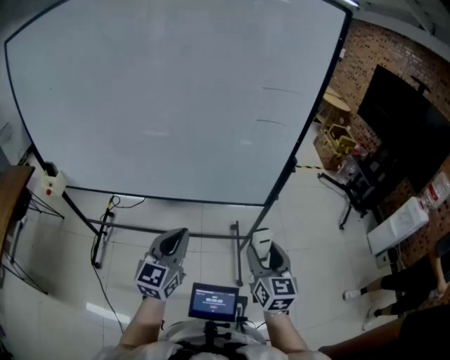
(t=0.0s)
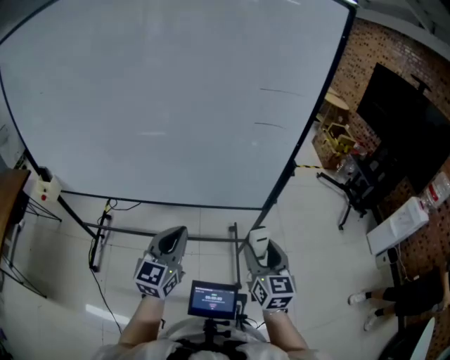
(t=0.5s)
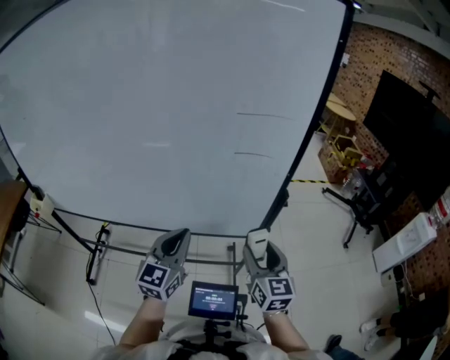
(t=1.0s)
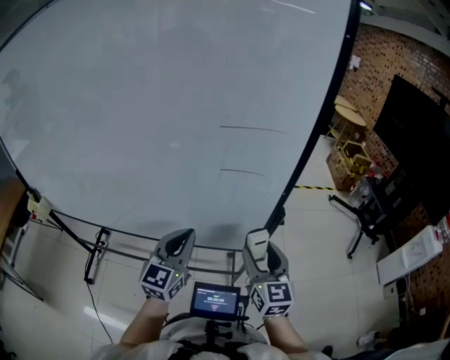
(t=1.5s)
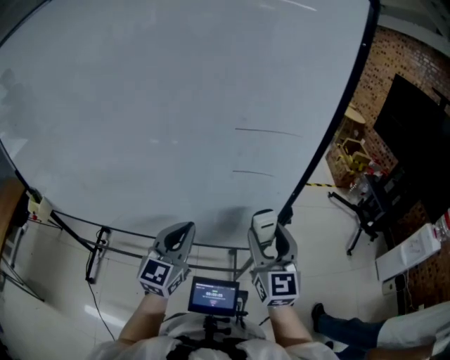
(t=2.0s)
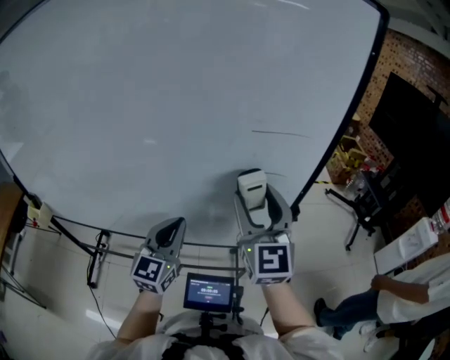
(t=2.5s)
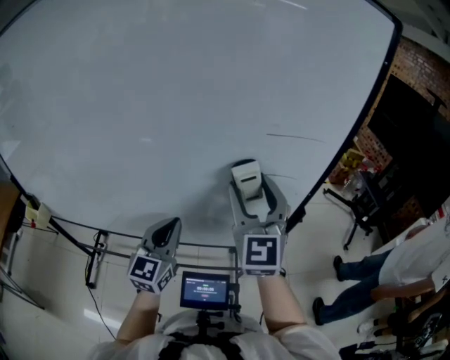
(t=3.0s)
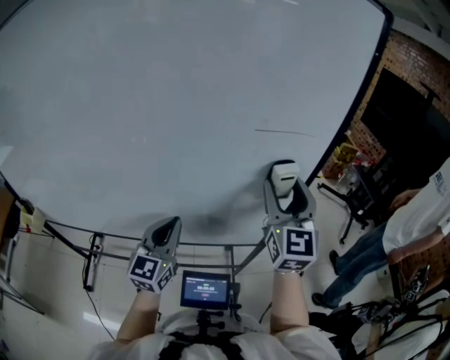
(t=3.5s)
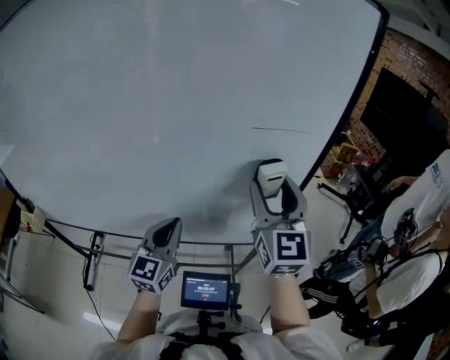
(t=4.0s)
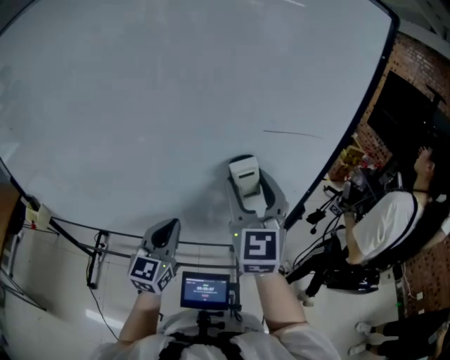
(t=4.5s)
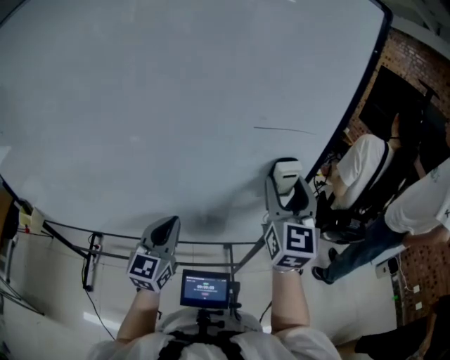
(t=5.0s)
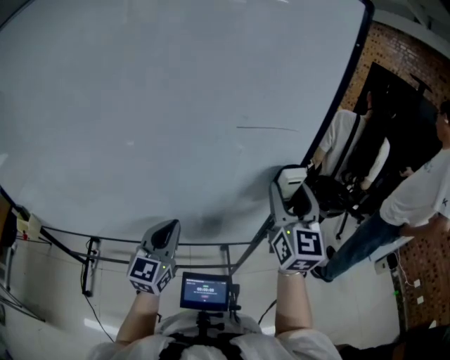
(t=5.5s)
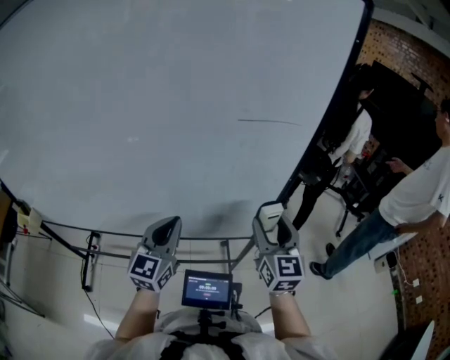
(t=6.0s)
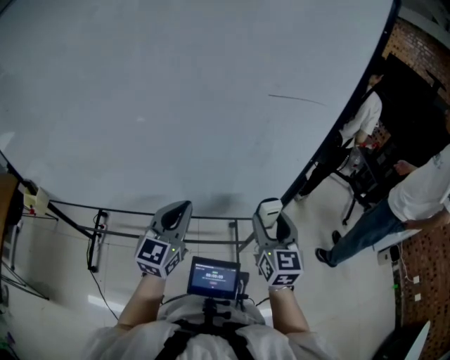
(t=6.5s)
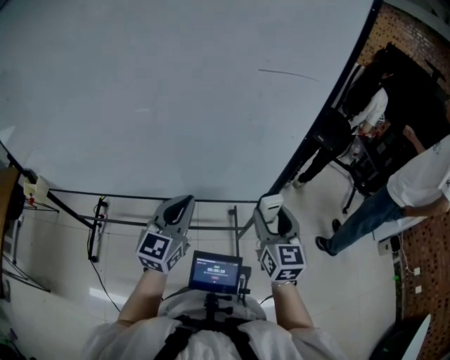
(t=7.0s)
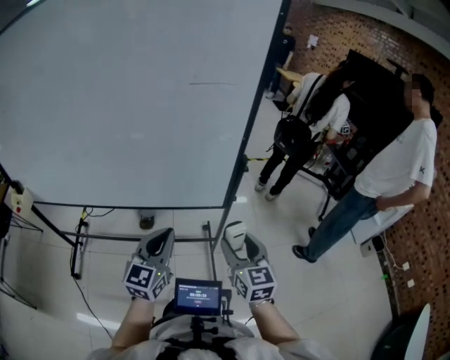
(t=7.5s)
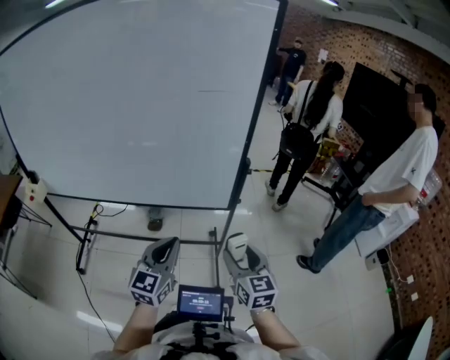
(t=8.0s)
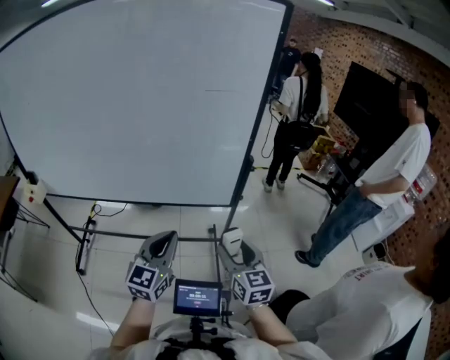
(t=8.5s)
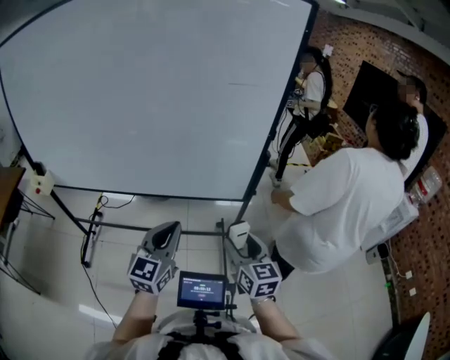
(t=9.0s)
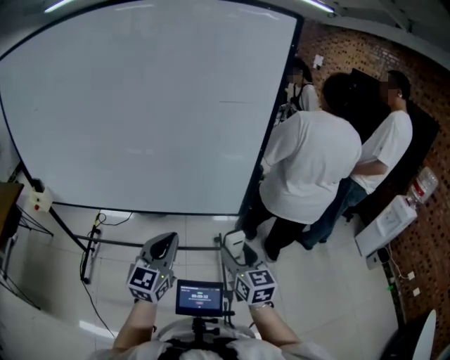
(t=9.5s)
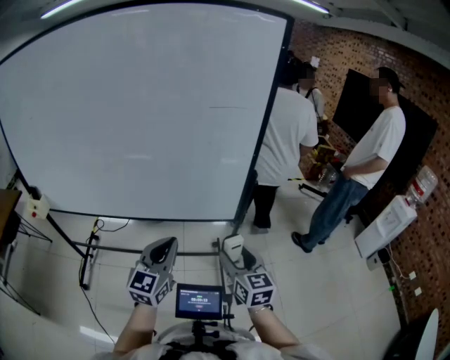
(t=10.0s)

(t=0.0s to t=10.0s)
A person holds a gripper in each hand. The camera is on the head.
t=0.0s - t=2.0s: The left gripper travels forward by roughly 20 cm. Meanwhile the right gripper travels forward and upward by about 25 cm.
t=2.0s - t=4.0s: The left gripper travels to the left by about 5 cm. Meanwhile the right gripper is displaced upward by some 10 cm.
t=4.0s - t=6.0s: The right gripper travels downward and to the right by approximately 15 cm.
t=6.0s - t=8.0s: The left gripper travels backward and to the right by about 20 cm. The right gripper moves backward and downward, some 20 cm.
t=8.0s - t=10.0s: The grippers both shift to the left by roughly 5 cm.

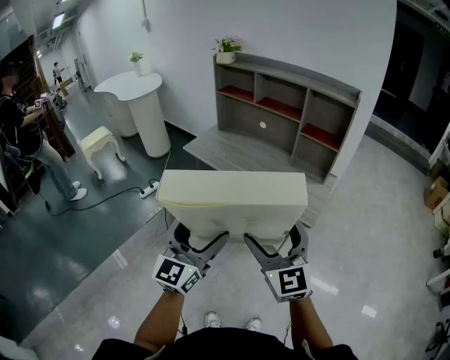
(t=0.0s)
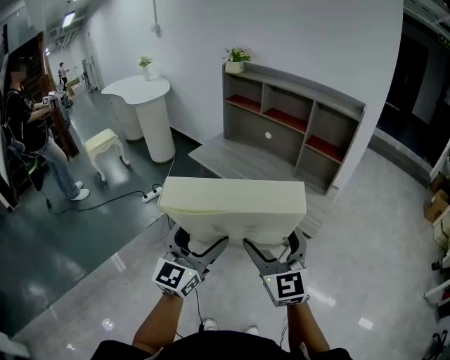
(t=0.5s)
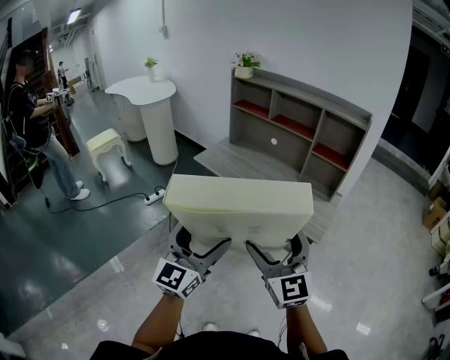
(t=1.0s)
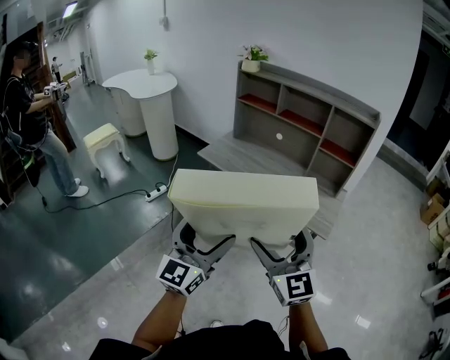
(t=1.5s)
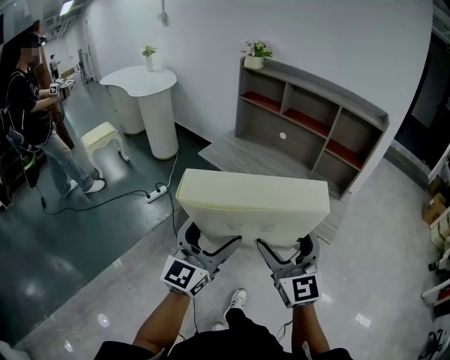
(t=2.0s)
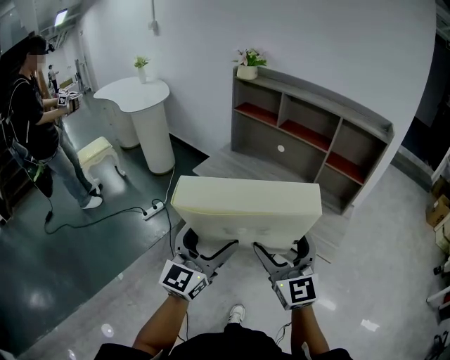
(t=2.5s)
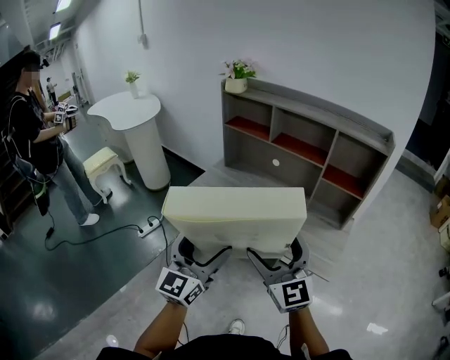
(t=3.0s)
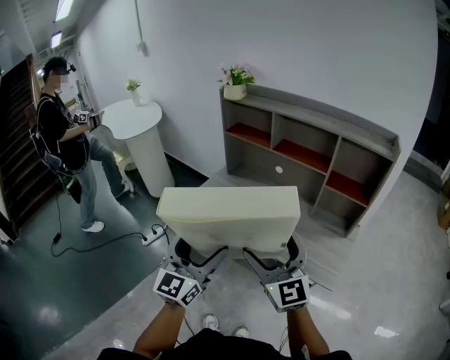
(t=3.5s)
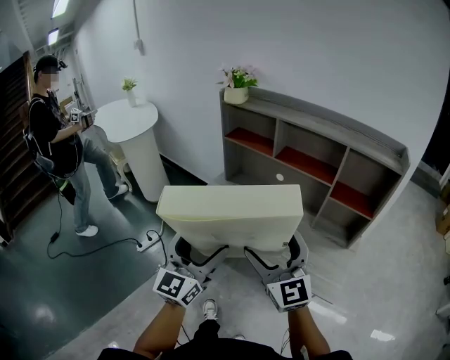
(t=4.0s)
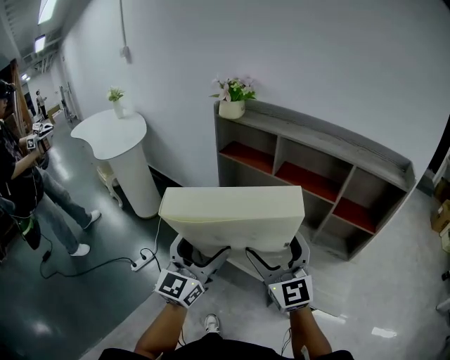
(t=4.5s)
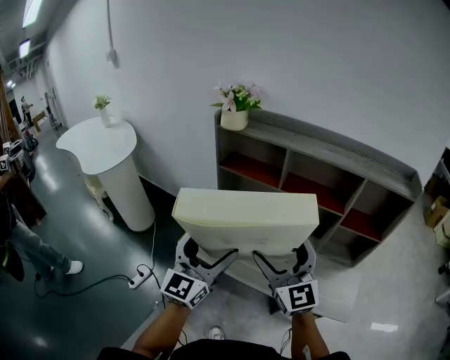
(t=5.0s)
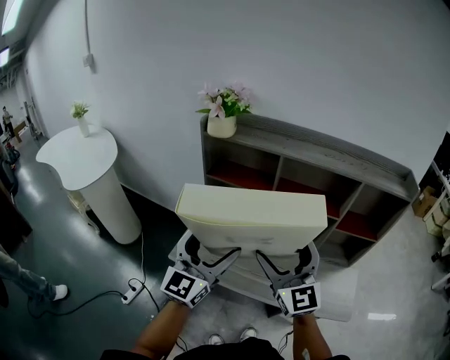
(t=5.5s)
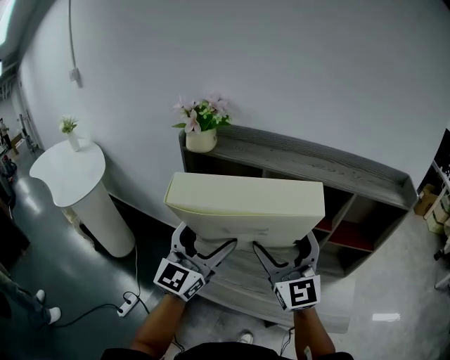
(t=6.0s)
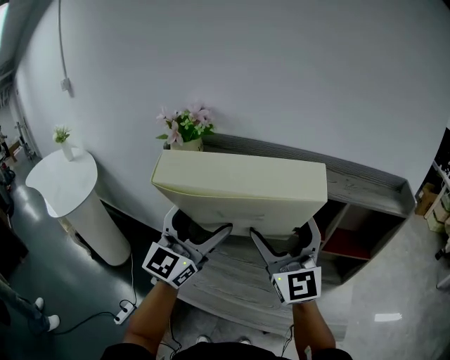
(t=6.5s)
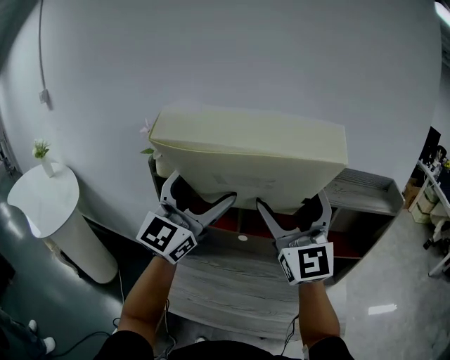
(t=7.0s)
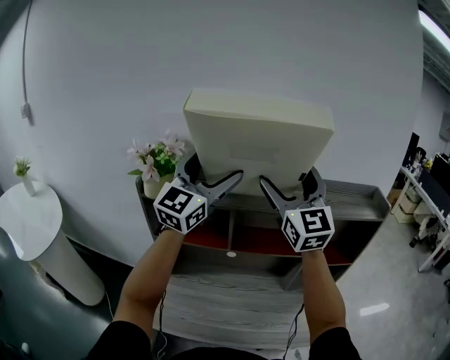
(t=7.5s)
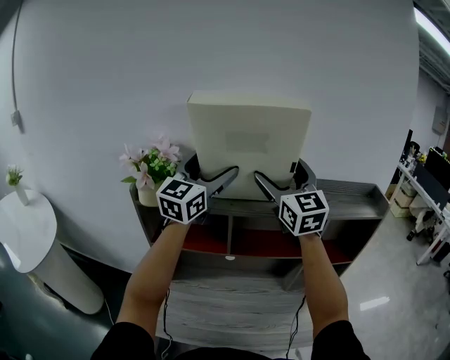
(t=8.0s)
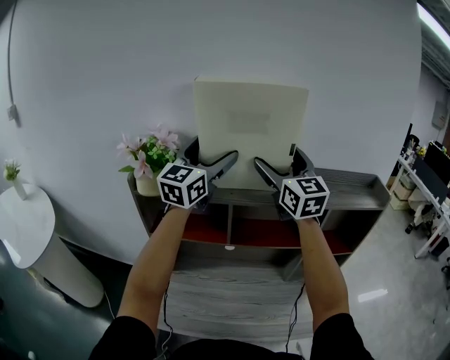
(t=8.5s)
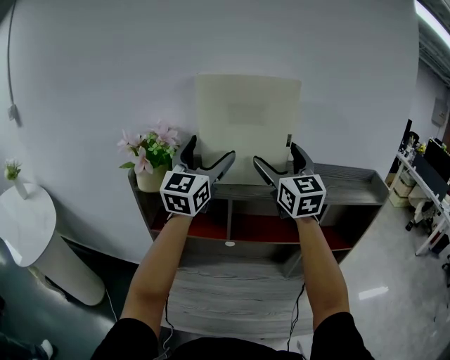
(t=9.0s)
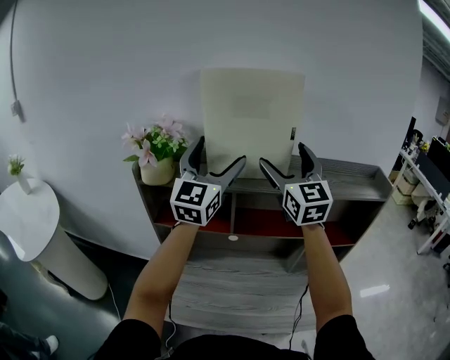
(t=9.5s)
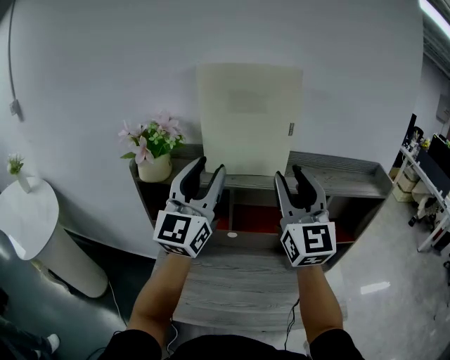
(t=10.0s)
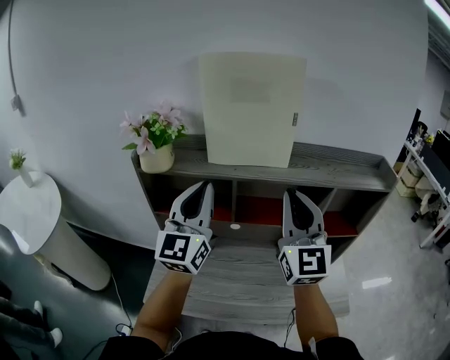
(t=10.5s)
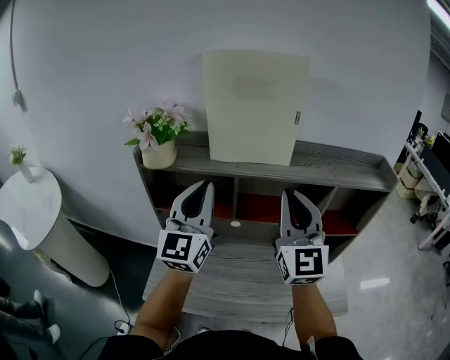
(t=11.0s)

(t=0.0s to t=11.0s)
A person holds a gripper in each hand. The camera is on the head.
t=0.0s - t=2.0s: The left gripper is displaced to the left and forward by about 10 cm; the right gripper travels to the left by roughly 10 cm.
t=2.0s - t=3.5s: The two grippers go roughly 20 cm forward.
t=3.5s - t=5.5s: Both grippers move forward, some 30 cm. The right gripper turns by about 20 degrees.
t=5.5s - t=7.5s: The grippers both shift forward and upward by some 35 cm. The left gripper changes its angle by approximately 20 degrees.
t=7.5s - t=9.0s: Both grippers move forward, about 5 cm.
t=9.0s - t=11.0s: Both grippers travel together backward and downward, some 15 cm. The right gripper closes up; the left gripper closes up.

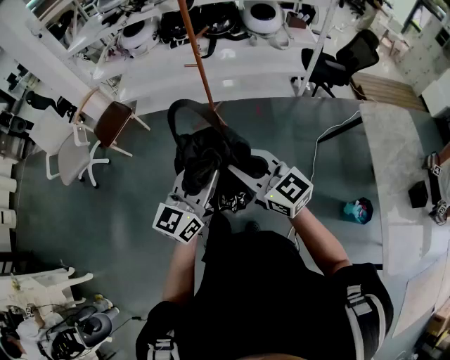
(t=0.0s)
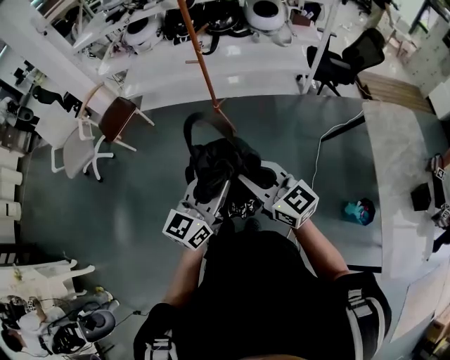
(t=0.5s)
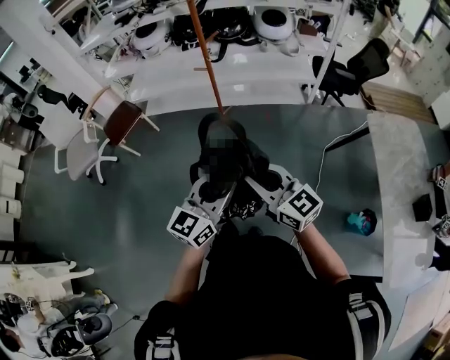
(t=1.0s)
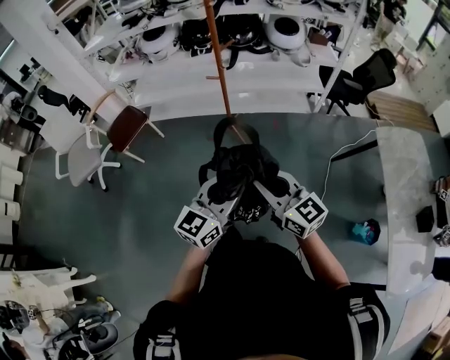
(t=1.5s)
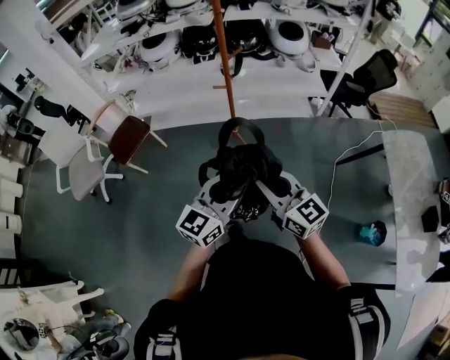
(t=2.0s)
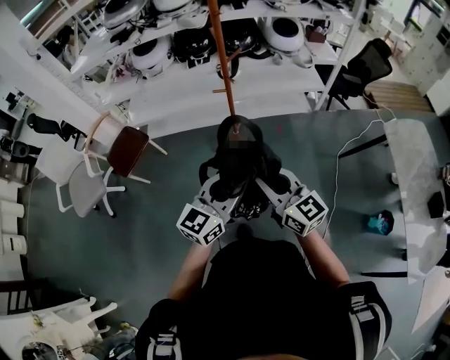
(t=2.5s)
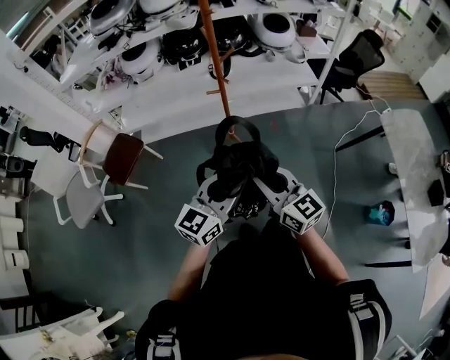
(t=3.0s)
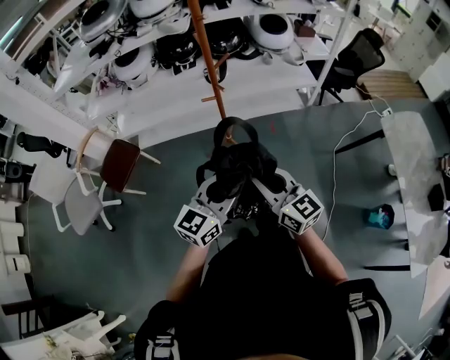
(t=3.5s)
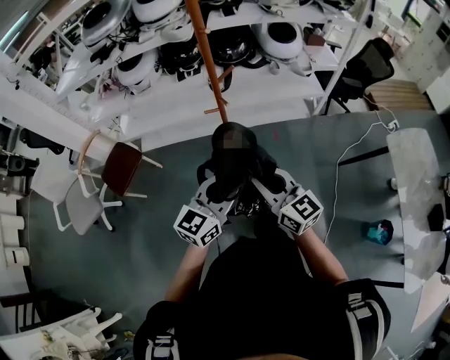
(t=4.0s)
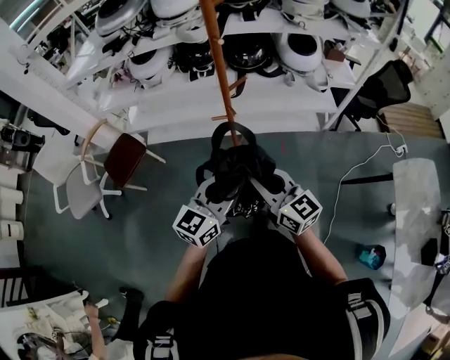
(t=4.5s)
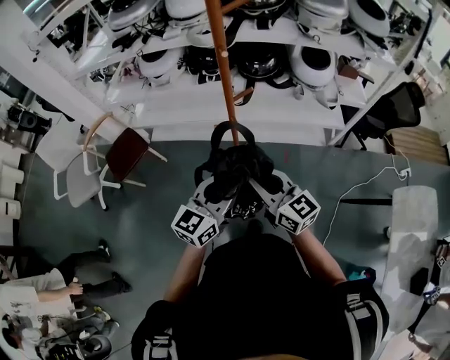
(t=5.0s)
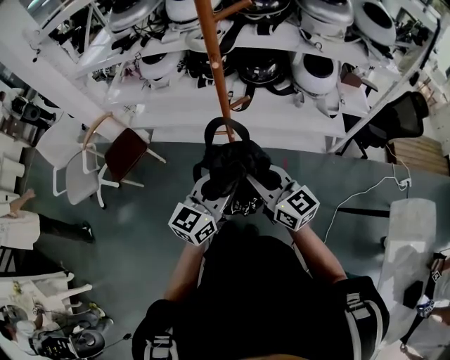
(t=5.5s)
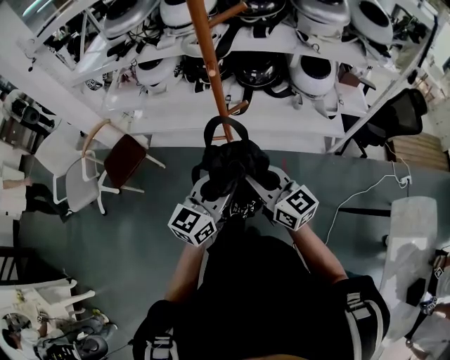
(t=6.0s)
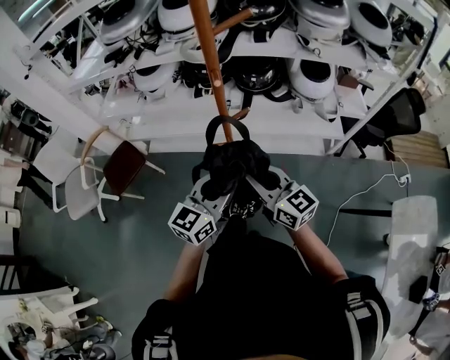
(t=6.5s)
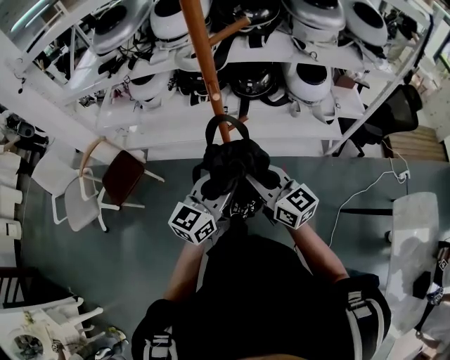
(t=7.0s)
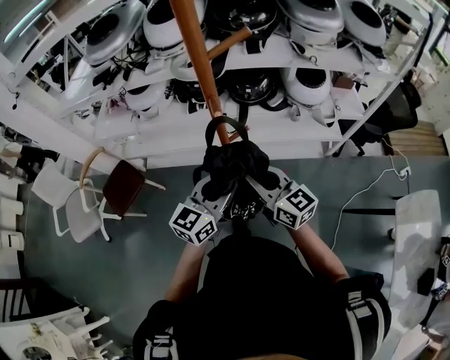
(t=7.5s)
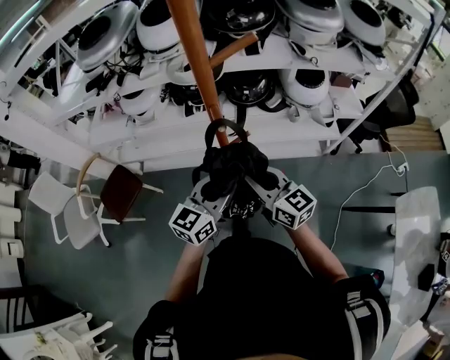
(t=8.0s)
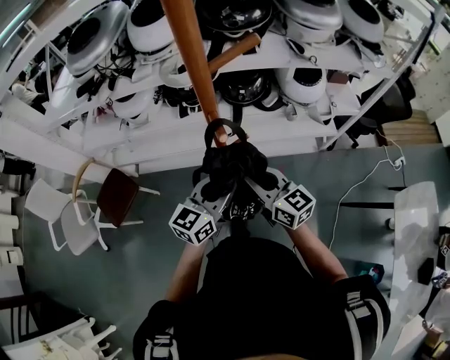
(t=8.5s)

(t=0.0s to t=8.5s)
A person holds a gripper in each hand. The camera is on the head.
t=0.0s - t=2.0s: The two grippers go approximately 15 cm forward and to the left.
t=2.0s - t=4.0s: Both grippers travel together forward, roughly 25 cm.
t=4.0s - t=6.5s: Both grippers travel together forward, roughly 25 cm.
t=6.5s - t=8.5s: Both grippers move forward, roughly 15 cm.
